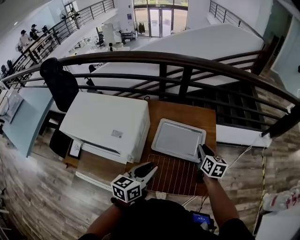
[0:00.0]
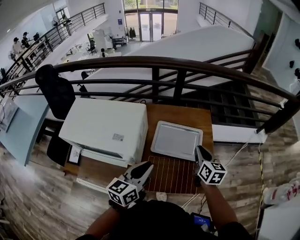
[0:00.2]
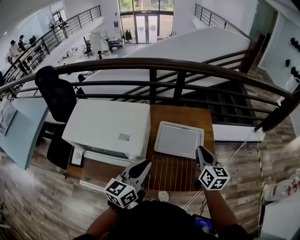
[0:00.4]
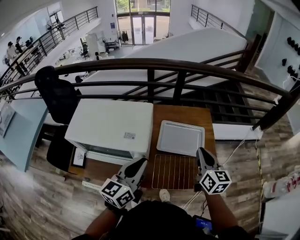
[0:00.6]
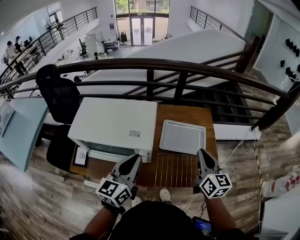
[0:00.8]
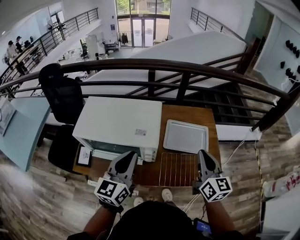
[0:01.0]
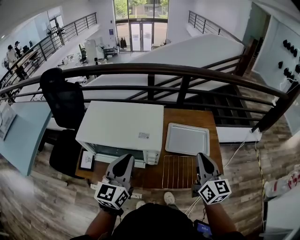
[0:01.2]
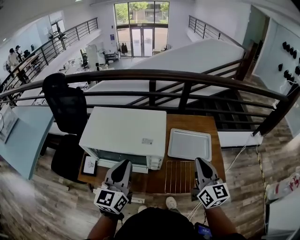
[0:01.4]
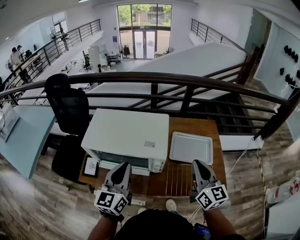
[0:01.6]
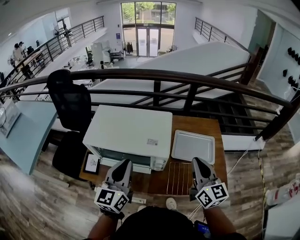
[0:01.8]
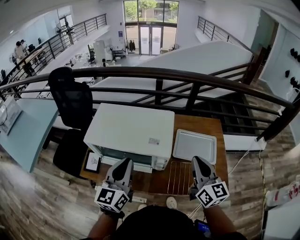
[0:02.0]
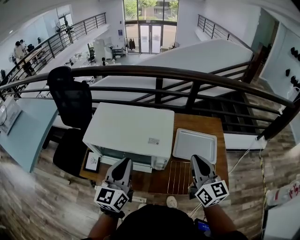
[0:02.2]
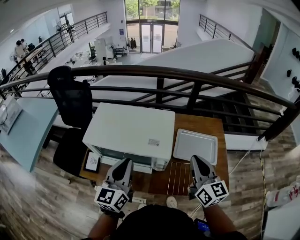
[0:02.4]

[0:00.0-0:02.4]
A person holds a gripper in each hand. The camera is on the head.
0:00.0 to 0:01.2: The left gripper goes roughly 25 cm to the left and upward, and changes its angle by approximately 30 degrees, while the right gripper heads upward, backward and to the left, covering roughly 30 cm, changes its angle by some 30 degrees, and closes its fingers.
0:01.2 to 0:02.4: The right gripper heads to the left, covering roughly 5 cm.

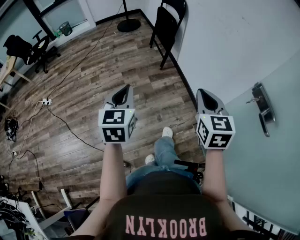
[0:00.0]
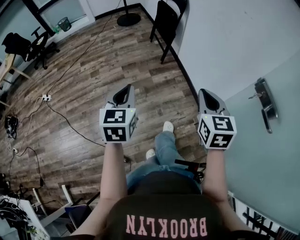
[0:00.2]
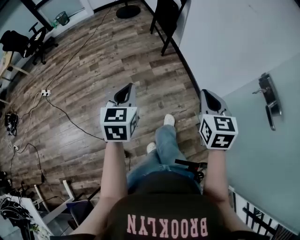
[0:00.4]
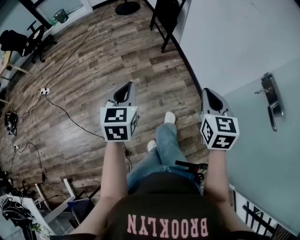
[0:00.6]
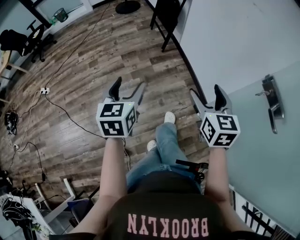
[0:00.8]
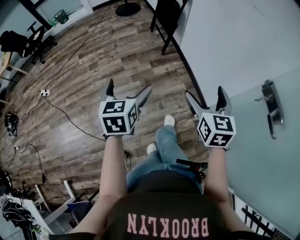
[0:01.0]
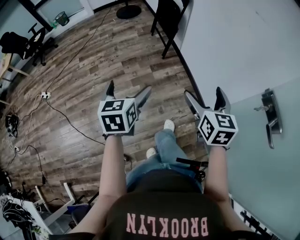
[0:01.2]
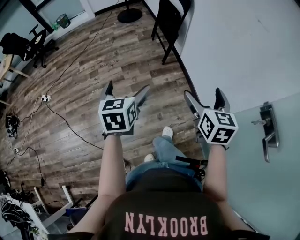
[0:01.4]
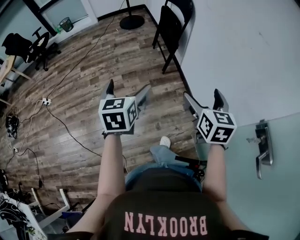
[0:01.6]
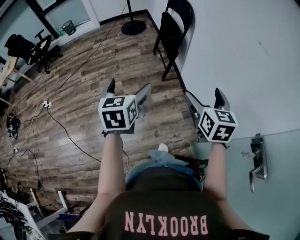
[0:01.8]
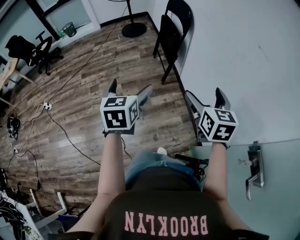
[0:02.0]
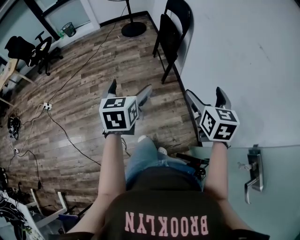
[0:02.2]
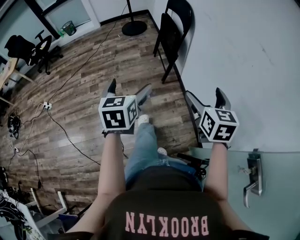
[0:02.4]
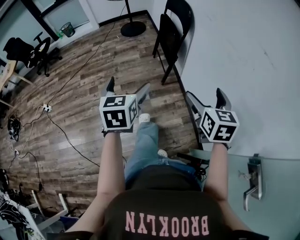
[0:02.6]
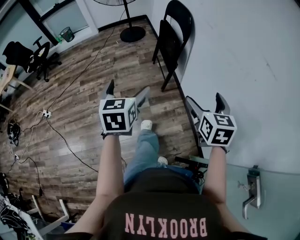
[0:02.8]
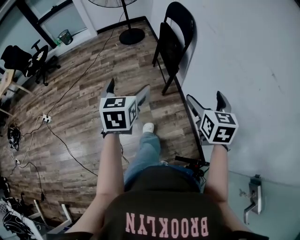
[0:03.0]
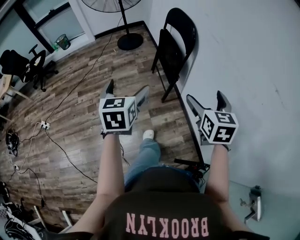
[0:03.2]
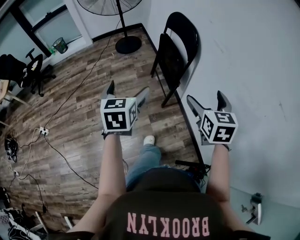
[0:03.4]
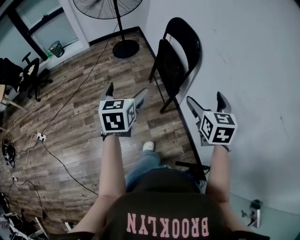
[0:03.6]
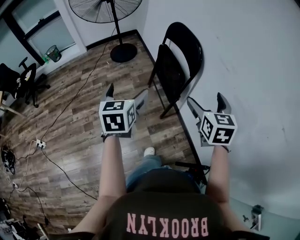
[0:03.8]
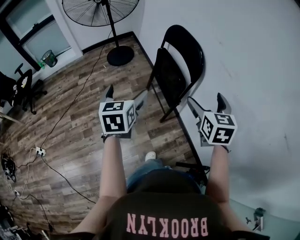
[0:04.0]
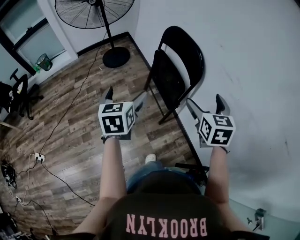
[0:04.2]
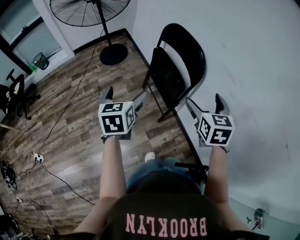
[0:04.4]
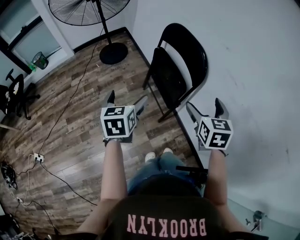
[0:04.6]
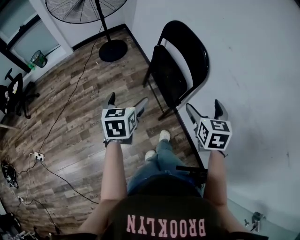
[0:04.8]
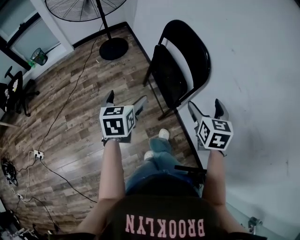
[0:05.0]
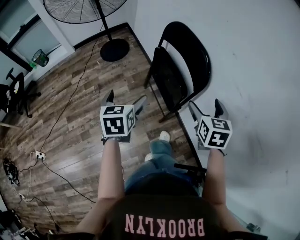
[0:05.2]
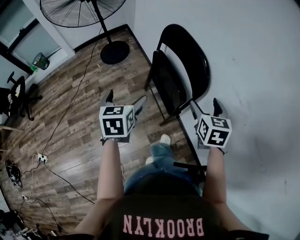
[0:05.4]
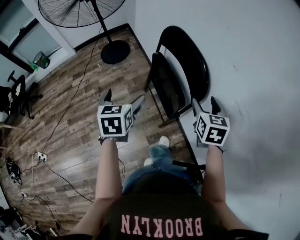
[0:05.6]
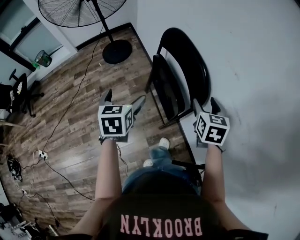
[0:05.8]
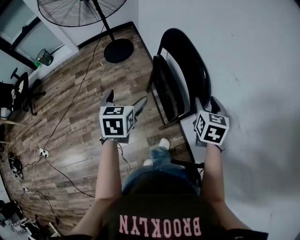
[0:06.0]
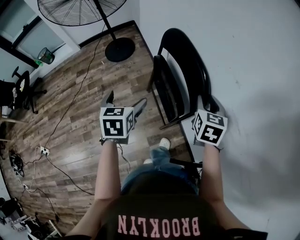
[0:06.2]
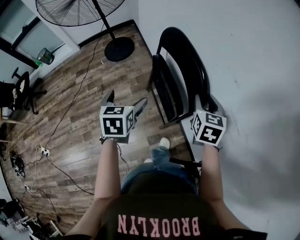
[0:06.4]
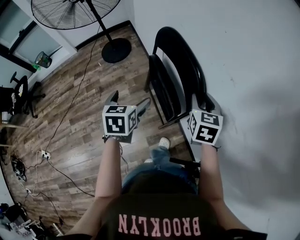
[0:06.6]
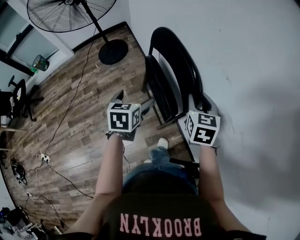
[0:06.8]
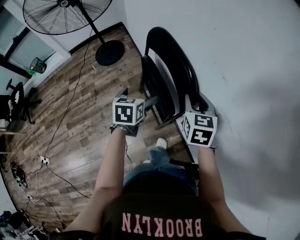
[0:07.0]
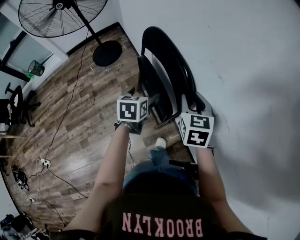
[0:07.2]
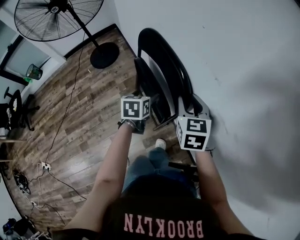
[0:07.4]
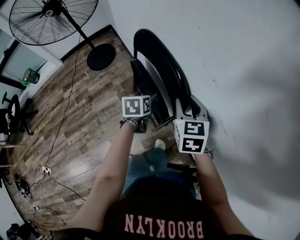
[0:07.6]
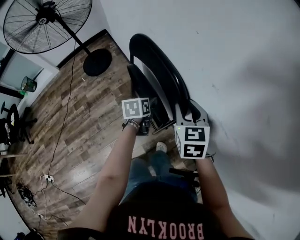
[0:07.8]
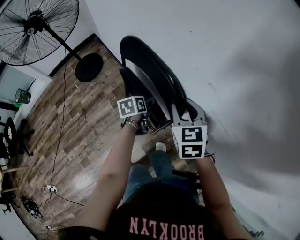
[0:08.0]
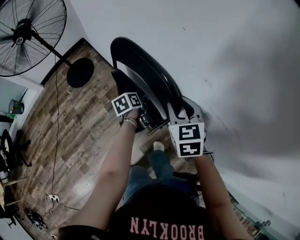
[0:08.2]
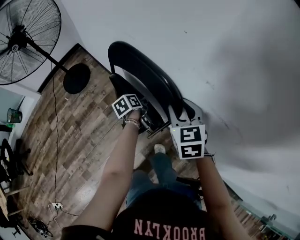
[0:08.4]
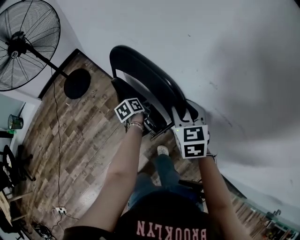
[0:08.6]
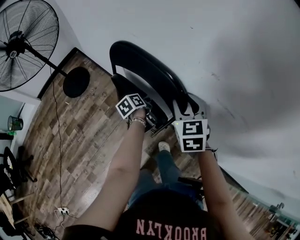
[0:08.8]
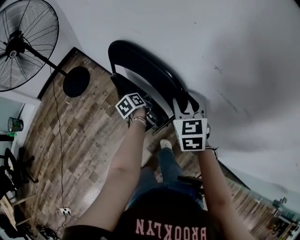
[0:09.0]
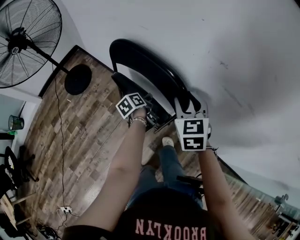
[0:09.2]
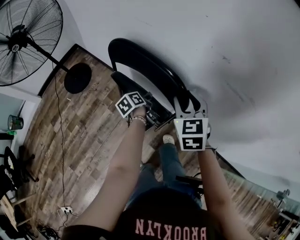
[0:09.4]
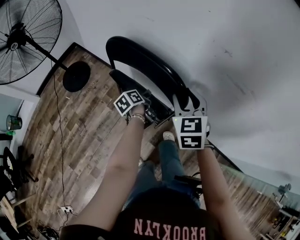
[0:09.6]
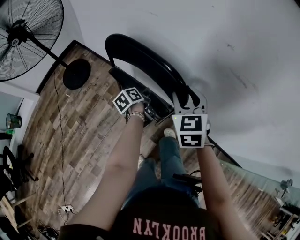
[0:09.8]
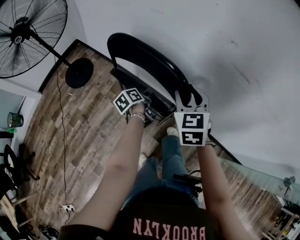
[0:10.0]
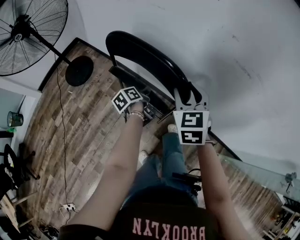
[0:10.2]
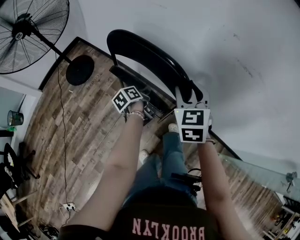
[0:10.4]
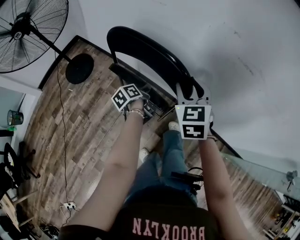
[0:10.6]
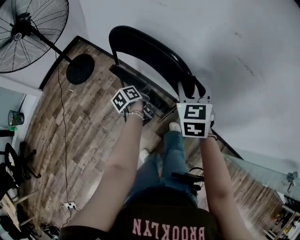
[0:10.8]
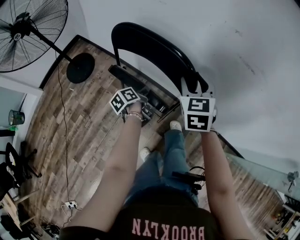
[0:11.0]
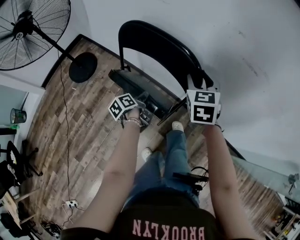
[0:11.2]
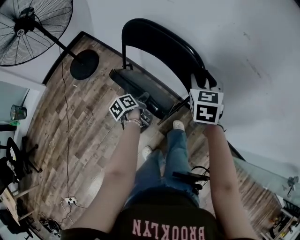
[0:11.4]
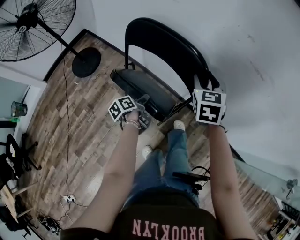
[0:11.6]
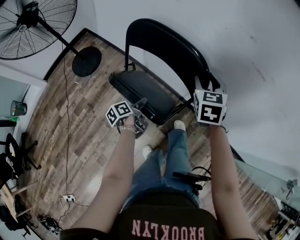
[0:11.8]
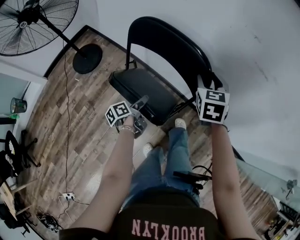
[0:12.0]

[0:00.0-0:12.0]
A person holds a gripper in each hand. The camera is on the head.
0:00.0 to 0:01.6: The two grippers go approximately 20 cm forward. The right gripper opens its fingers. The left gripper opens up.
0:01.6 to 0:03.0: Both grippers travel together forward, some 20 cm.
0:03.0 to 0:04.4: The two grippers go about 30 cm forward.
0:04.4 to 0:06.0: Both grippers travel together forward, approximately 20 cm. The right gripper closes up.
0:06.0 to 0:07.6: The left gripper travels to the right, downward and forward by approximately 20 cm, swivels about 20 degrees, and closes its fingers.
0:07.6 to 0:09.0: The left gripper moves downward, roughly 5 cm, and swivels some 30 degrees.
0:09.0 to 0:10.4: The two grippers go about 15 cm backward and to the left.
0:10.4 to 0:12.0: The right gripper goes some 5 cm forward. The left gripper goes approximately 10 cm backward, and opens.

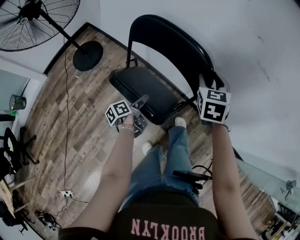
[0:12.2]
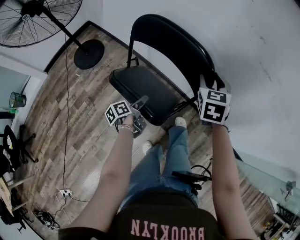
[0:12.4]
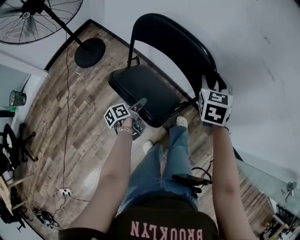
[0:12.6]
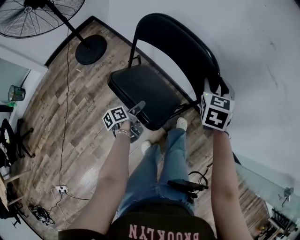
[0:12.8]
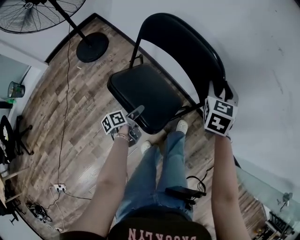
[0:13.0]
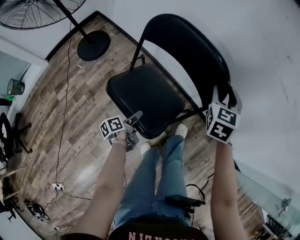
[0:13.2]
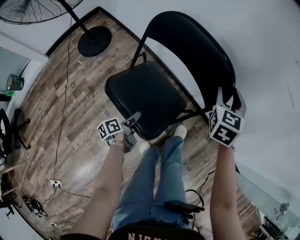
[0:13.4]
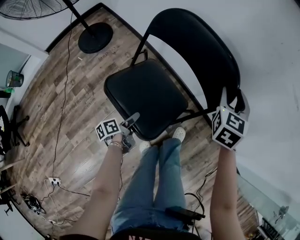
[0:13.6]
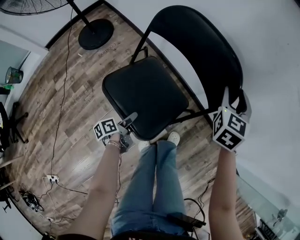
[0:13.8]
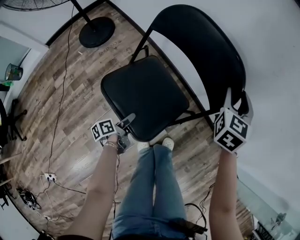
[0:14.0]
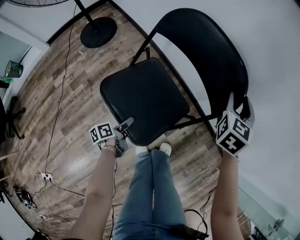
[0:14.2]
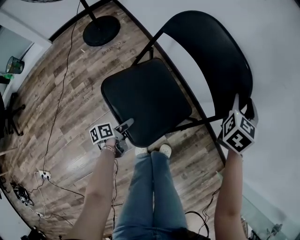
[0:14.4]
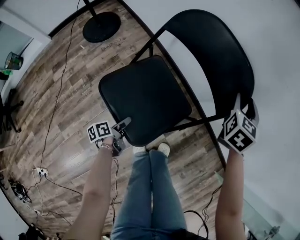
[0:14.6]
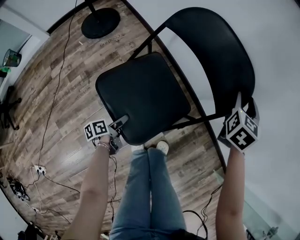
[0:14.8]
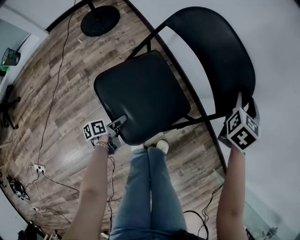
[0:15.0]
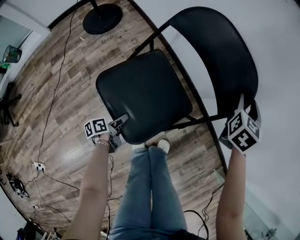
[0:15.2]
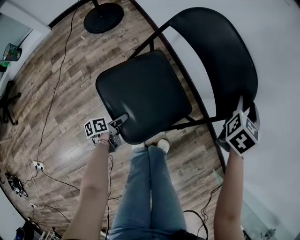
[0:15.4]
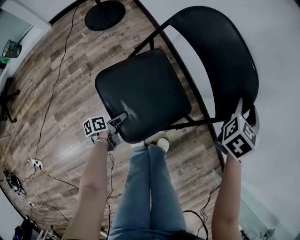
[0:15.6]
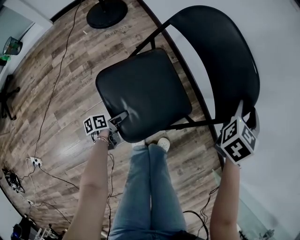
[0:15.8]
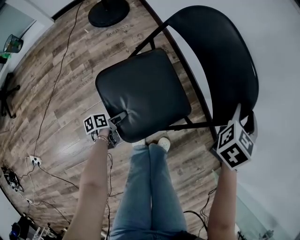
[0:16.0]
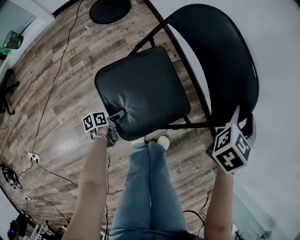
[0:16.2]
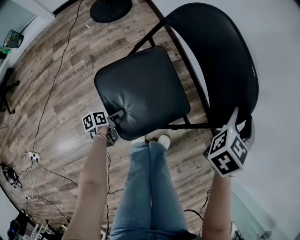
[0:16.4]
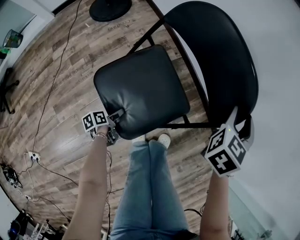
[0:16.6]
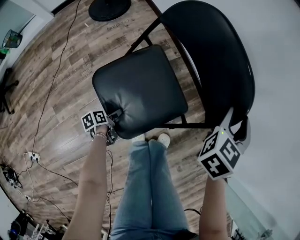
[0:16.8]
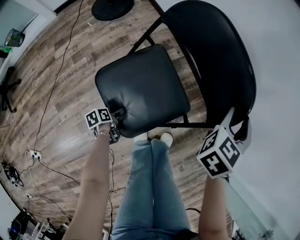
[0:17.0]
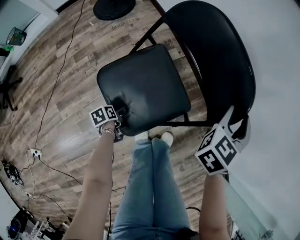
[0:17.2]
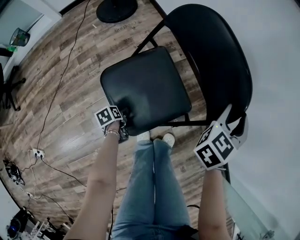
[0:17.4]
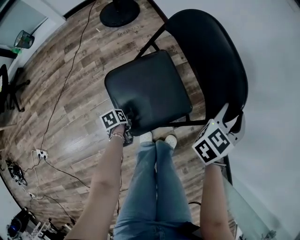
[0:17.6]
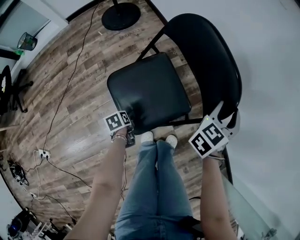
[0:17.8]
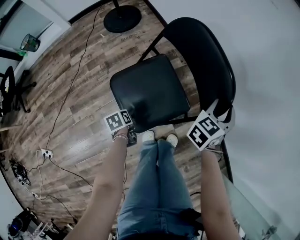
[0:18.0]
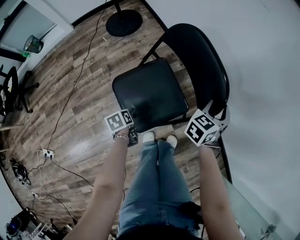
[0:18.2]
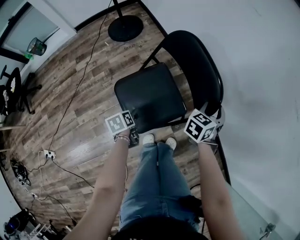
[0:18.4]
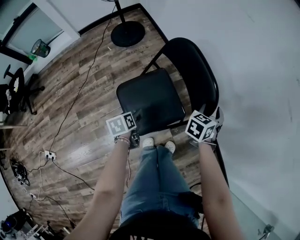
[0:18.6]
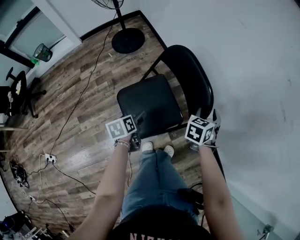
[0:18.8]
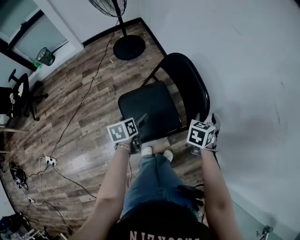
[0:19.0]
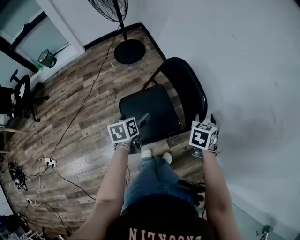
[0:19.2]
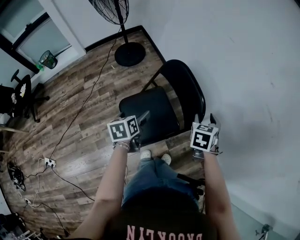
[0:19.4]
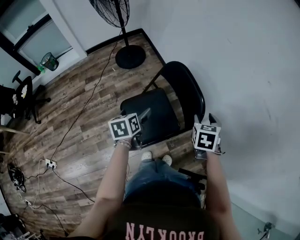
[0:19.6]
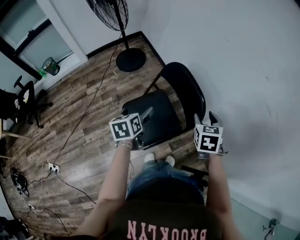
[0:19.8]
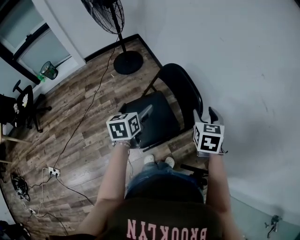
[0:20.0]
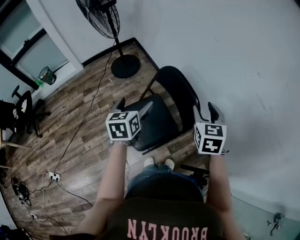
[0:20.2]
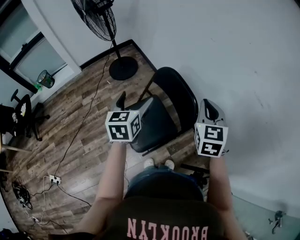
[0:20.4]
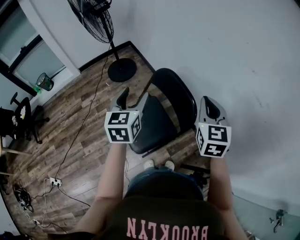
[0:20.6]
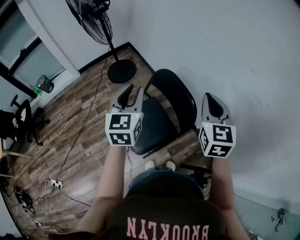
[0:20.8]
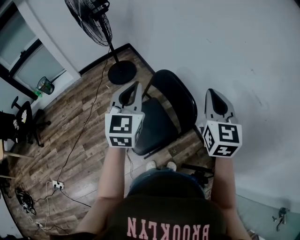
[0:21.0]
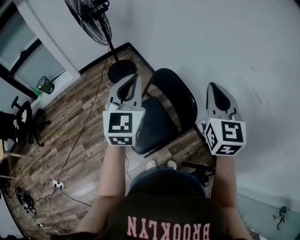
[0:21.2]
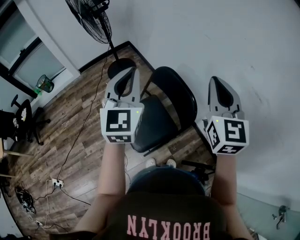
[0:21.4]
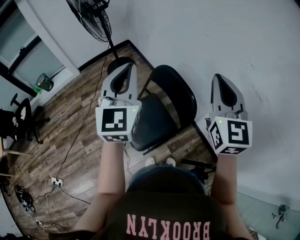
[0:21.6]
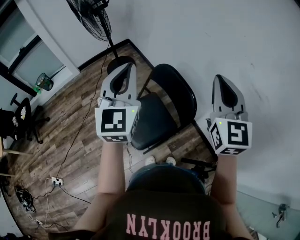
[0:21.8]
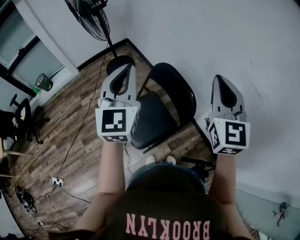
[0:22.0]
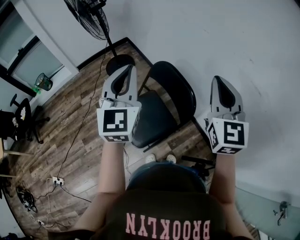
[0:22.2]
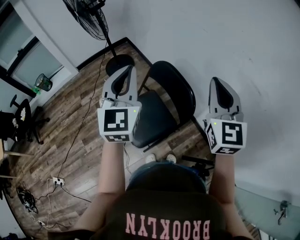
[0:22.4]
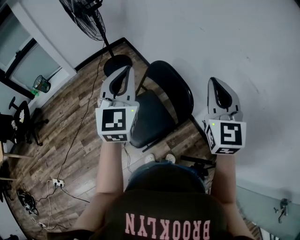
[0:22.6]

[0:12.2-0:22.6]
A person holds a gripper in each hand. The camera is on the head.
0:12.2 to 0:13.6: The left gripper is displaced downward and backward by some 15 cm. Meanwhile the right gripper is displaced downward by roughly 5 cm.
0:13.6 to 0:15.2: The left gripper goes roughly 15 cm downward and backward. Meanwhile the right gripper moves downward, some 10 cm.
0:15.2 to 0:16.6: The left gripper travels backward and downward by roughly 10 cm. Meanwhile the right gripper goes roughly 10 cm backward.
0:16.6 to 0:18.2: The left gripper is displaced upward by approximately 15 cm, and rotates approximately 20 degrees.
0:18.2 to 0:19.6: The left gripper heads upward, covering about 30 cm, rotates about 30 degrees, and opens its fingers, while the right gripper moves upward, some 15 cm, and turns by about 30 degrees.
0:19.6 to 0:21.2: The grippers both shift upward by approximately 25 cm. The left gripper angles its fingers upward, by approximately 40 degrees, and closes, while the right gripper angles its fingers upward, by about 40 degrees, and closes its fingers.
0:21.2 to 0:22.6: There are only small adjustments of the grippers.
